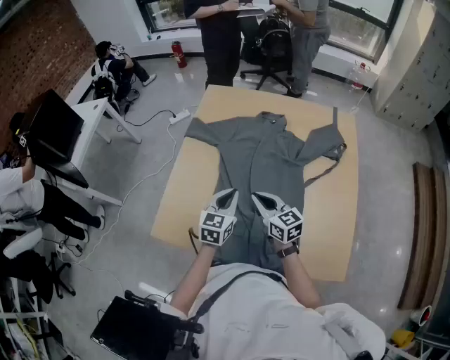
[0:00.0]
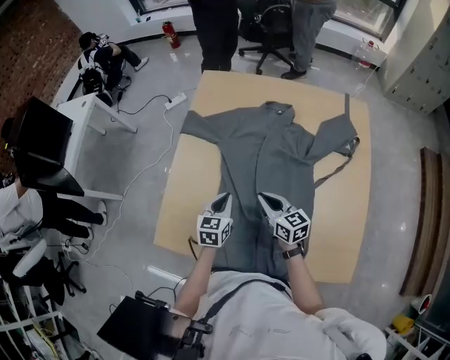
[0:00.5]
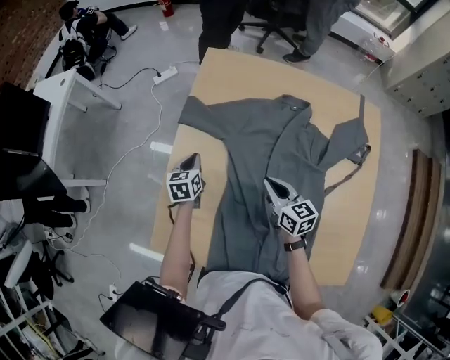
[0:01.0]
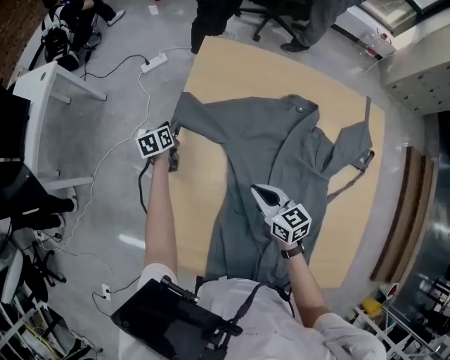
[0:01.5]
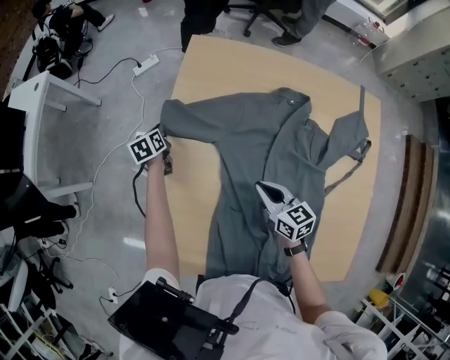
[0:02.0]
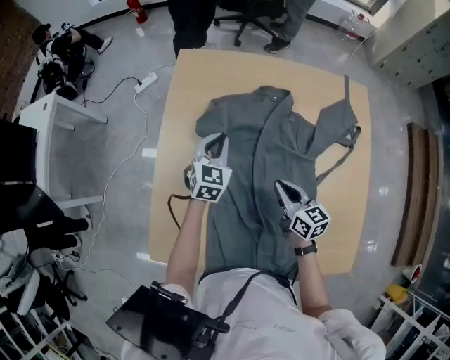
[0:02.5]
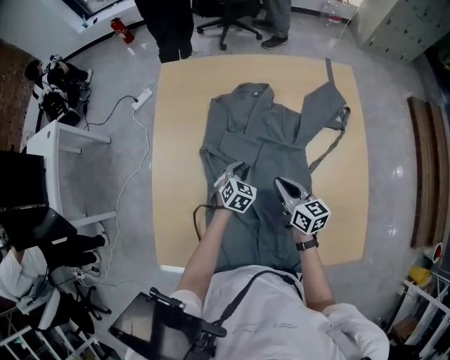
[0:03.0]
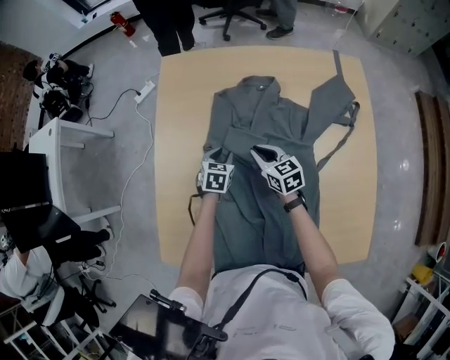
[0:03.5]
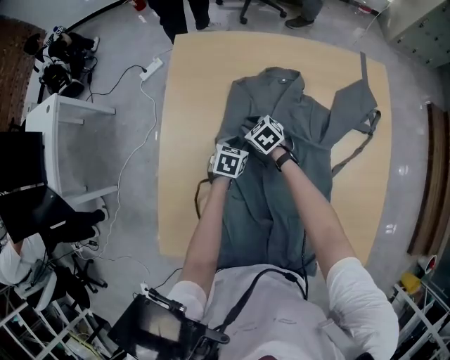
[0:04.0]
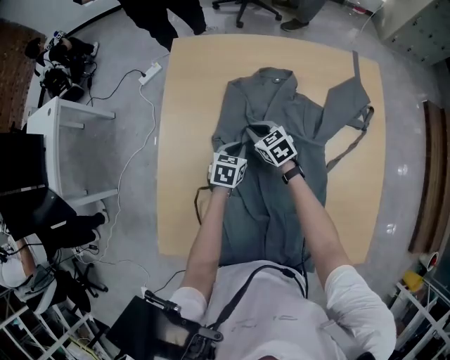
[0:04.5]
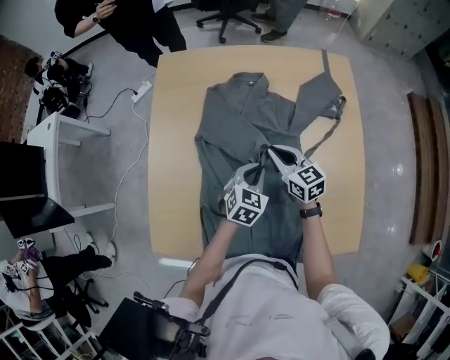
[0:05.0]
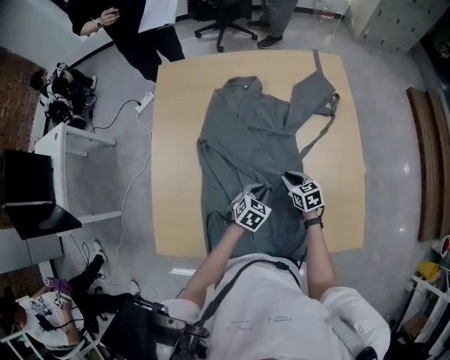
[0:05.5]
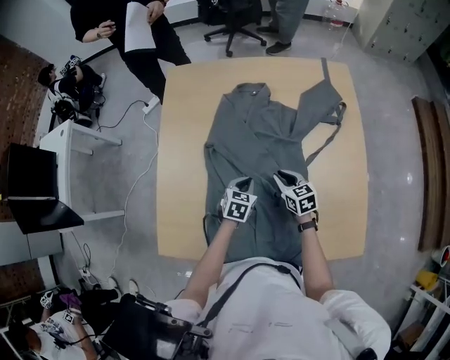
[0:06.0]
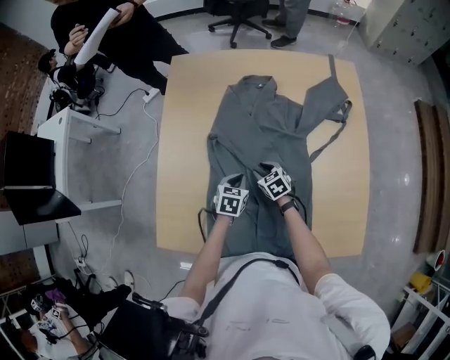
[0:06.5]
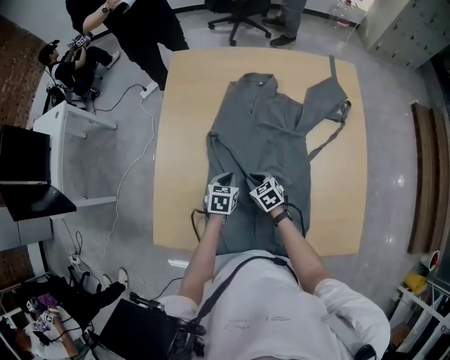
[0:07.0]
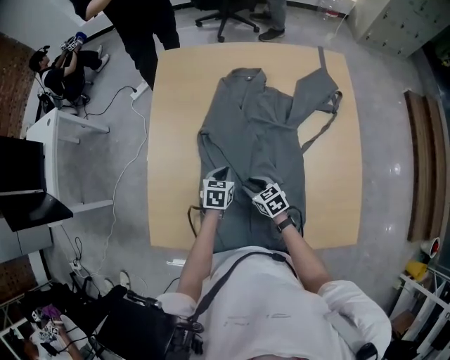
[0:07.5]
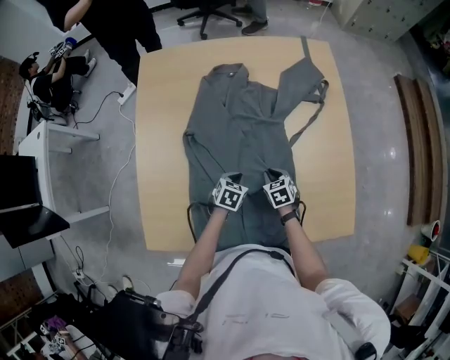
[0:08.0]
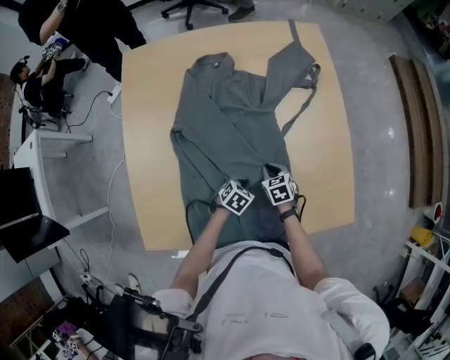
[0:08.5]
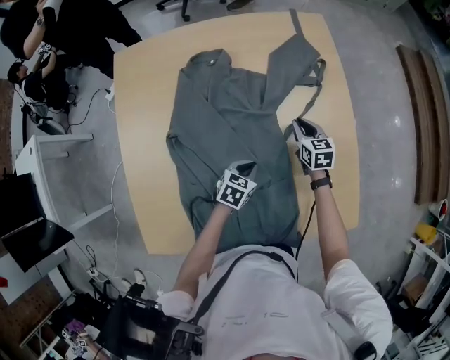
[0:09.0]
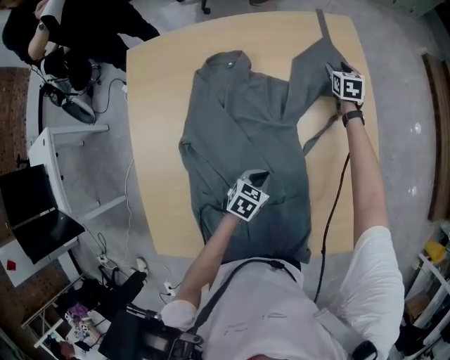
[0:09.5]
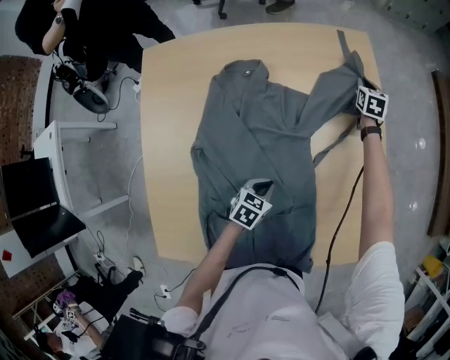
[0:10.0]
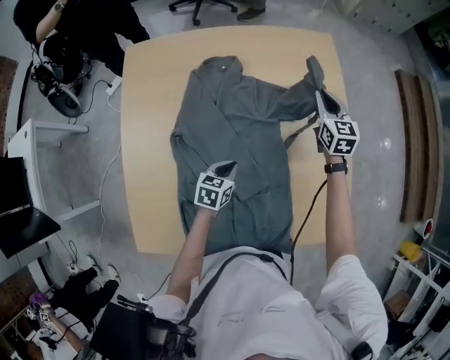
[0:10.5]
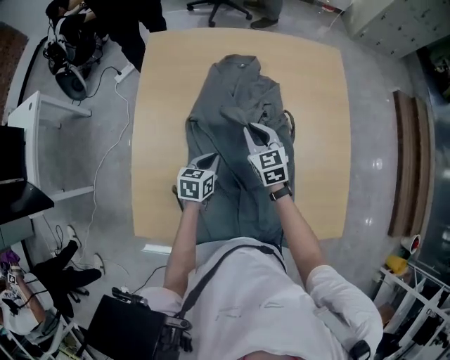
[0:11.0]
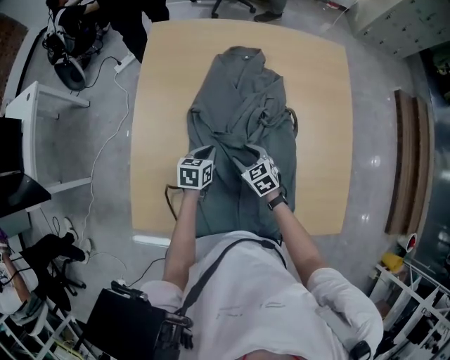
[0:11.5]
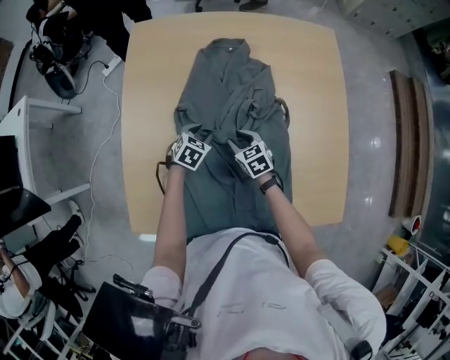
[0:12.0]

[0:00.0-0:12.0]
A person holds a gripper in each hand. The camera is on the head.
0:00.0 to 0:02.0: The right gripper is displaced forward and downward by approximately 20 cm. Meanwhile the left gripper is displaced forward, to the left and downward by about 50 cm, swivels approximately 40 degrees, and opens, then closes once more.
0:02.0 to 0:04.0: The left gripper goes approximately 35 cm to the right and backward, turns by approximately 40 degrees, and opens up. The right gripper moves forward and downward, approximately 20 cm, and swivels about 30 degrees.
0:04.0 to 0:06.0: The right gripper goes some 30 cm backward and to the right, and changes its angle by approximately 30 degrees; the left gripper moves backward, to the right and upward, approximately 20 cm, and closes its fingers.
0:06.0 to 0:08.0: The right gripper is displaced downward by roughly 10 cm, and turns by some 20 degrees. Meanwhile the left gripper changes place by about 10 cm.
0:08.0 to 0:10.0: The left gripper shifts by approximately 10 cm, while the right gripper shifts by approximately 50 cm, swivels roughly 40 degrees, and opens, then closes again.
0:10.0 to 0:12.0: The right gripper reaches approximately 15 cm upward, then returns, and turns by about 40 degrees. Meanwhile the left gripper ends up some 15 cm from where it was, and opens up.

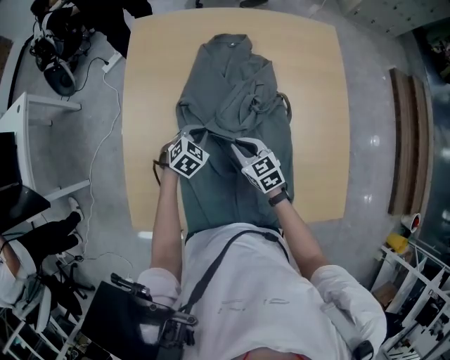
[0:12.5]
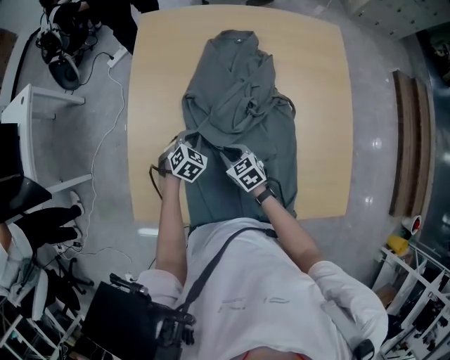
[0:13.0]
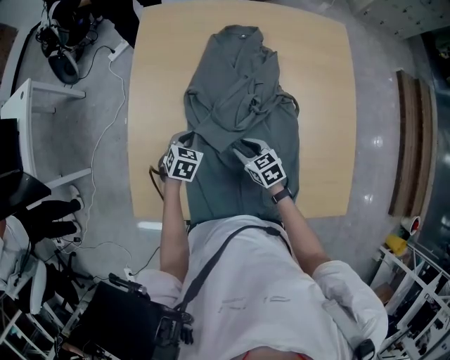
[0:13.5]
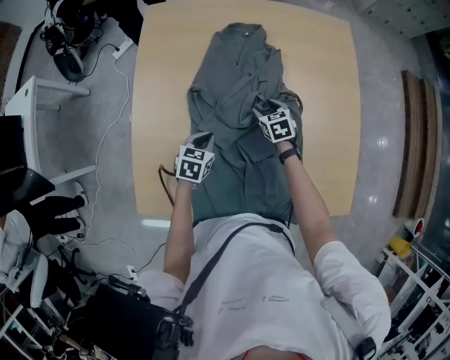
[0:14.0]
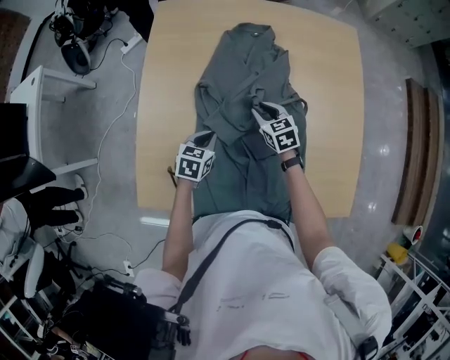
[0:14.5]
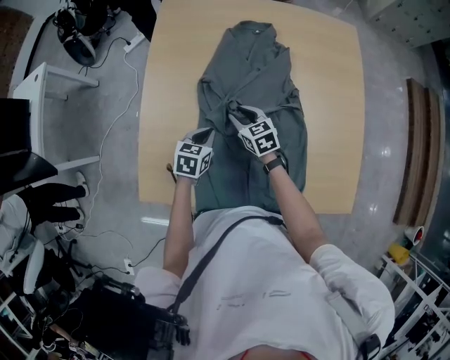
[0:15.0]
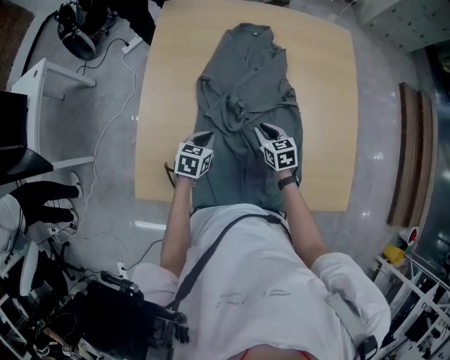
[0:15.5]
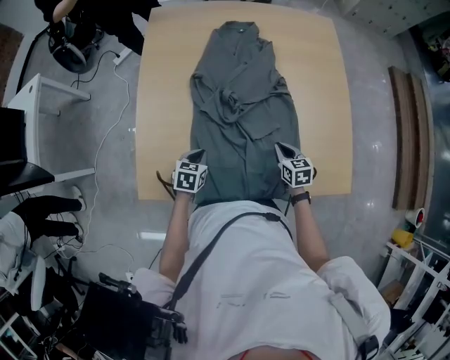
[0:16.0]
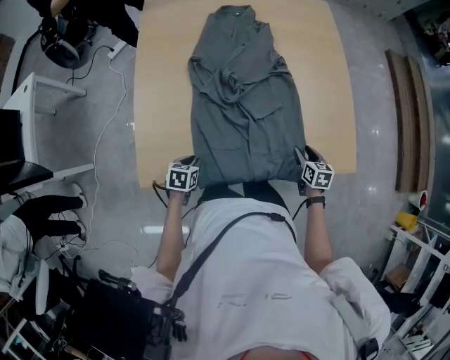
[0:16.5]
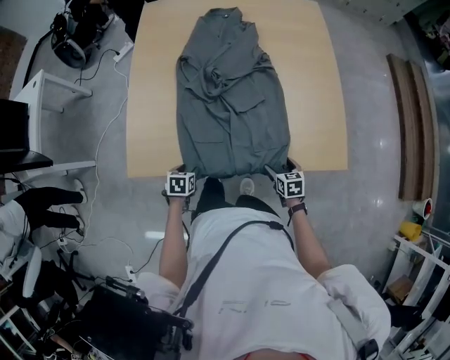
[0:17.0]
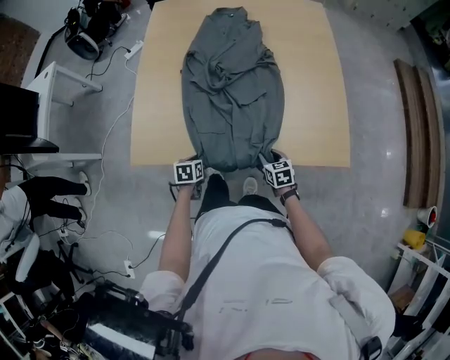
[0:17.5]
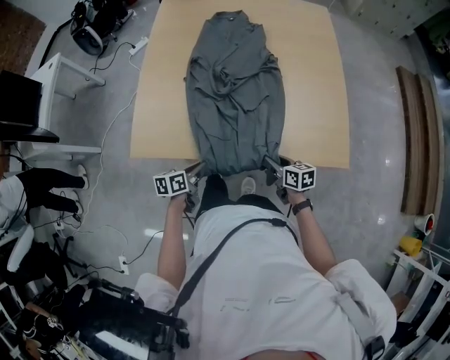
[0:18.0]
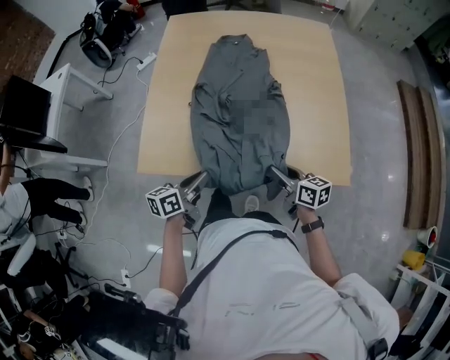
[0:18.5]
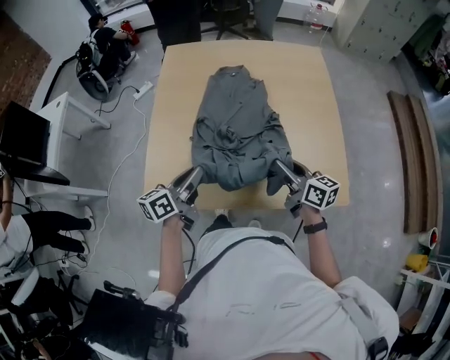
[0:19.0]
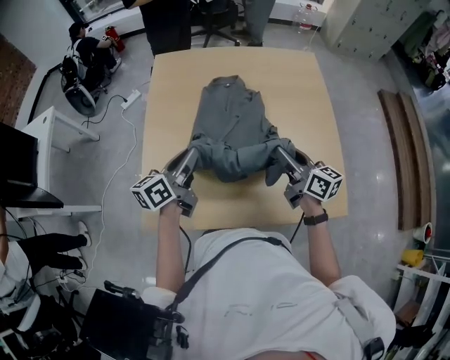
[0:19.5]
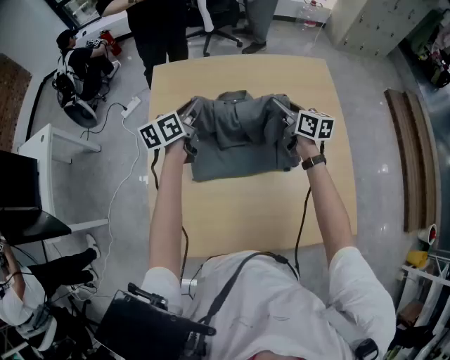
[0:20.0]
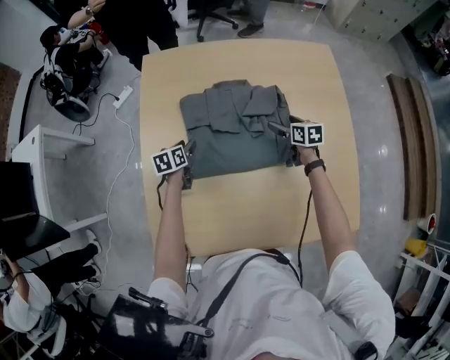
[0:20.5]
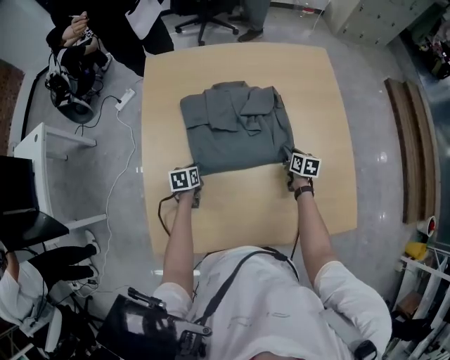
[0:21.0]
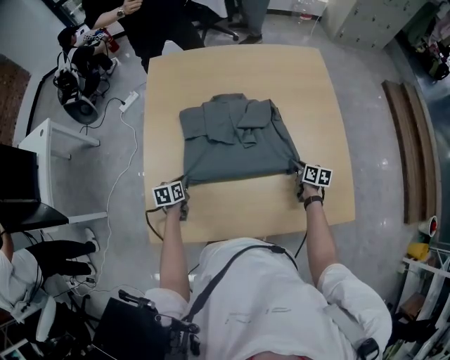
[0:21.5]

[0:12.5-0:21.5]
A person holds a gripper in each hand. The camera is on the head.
0:12.5 to 0:14.5: The right gripper goes some 5 cm forward. Meanwhile the left gripper is displaced backward by about 5 cm, and changes its angle by about 30 degrees.
0:14.5 to 0:17.0: The left gripper changes place by about 30 cm, and opens its fingers. Meanwhile the right gripper ends up about 40 cm from where it was, rotates roughly 30 degrees, and opens its fingers.
0:17.0 to 0:19.5: The two grippers go about 40 cm upward and forward. The right gripper tilts its fingers roughly 40 degrees upward, and closes up, while the left gripper angles its fingers upward, by roughly 60 degrees, and closes its fingers.
0:19.5 to 0:21.5: The grippers both shift downward by about 30 cm. The right gripper tips its fingers downward by some 30 degrees, and opens, then closes once more, while the left gripper angles its fingers downward, by about 40 degrees, and opens, then closes once more.

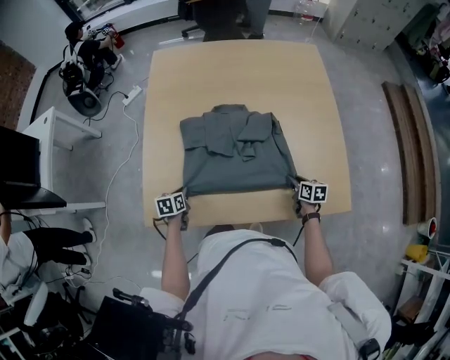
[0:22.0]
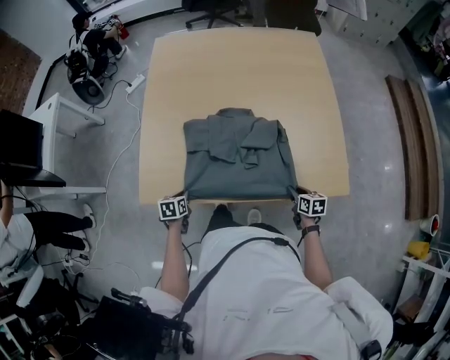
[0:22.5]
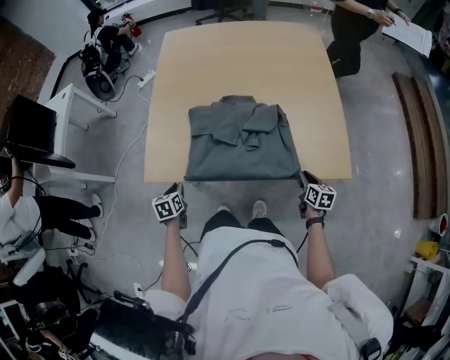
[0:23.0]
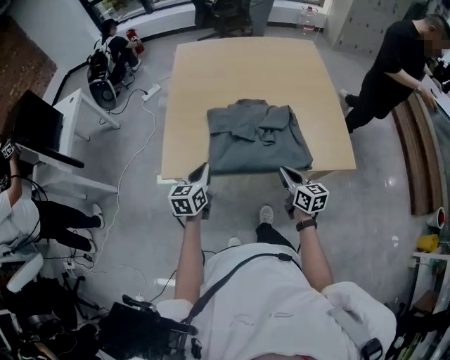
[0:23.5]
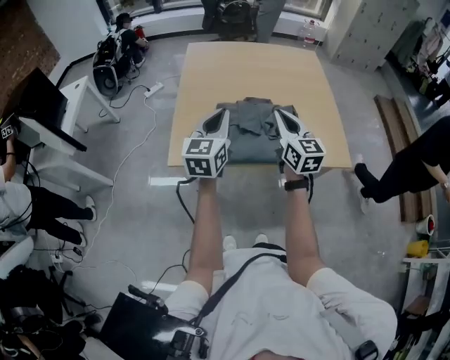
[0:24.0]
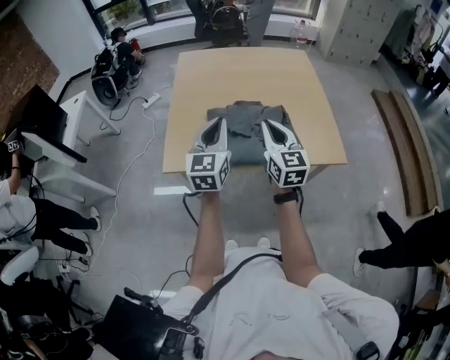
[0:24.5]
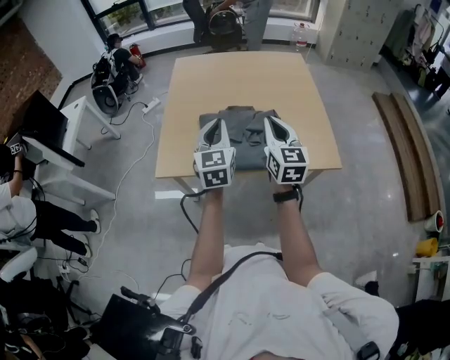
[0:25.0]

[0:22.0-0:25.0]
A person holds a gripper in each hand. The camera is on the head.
0:22.0 to 0:23.5: The left gripper moves upward and backward, about 25 cm, and rotates some 30 degrees, while the right gripper moves backward, upward and to the left, some 30 cm, and turns by some 30 degrees.
0:23.5 to 0:25.0: The right gripper heads upward, covering approximately 20 cm, and swivels roughly 30 degrees. Meanwhile the left gripper goes approximately 20 cm upward and to the right, and changes its angle by some 30 degrees.

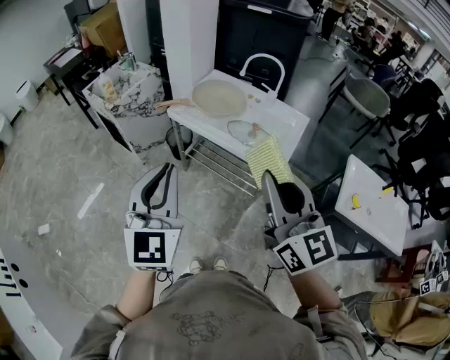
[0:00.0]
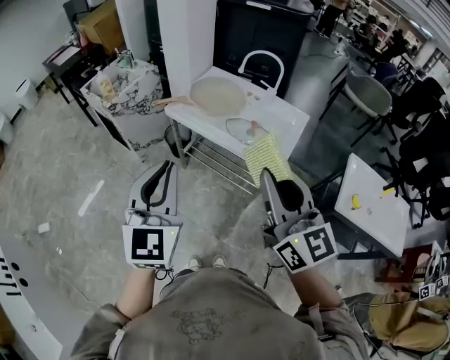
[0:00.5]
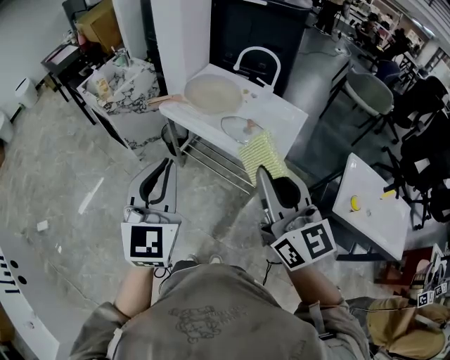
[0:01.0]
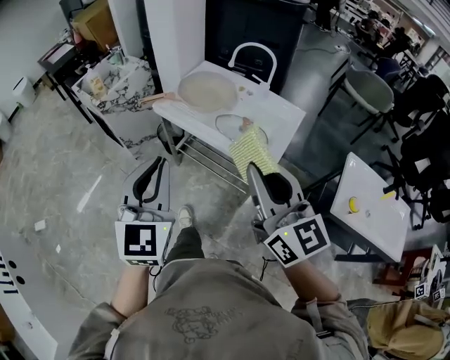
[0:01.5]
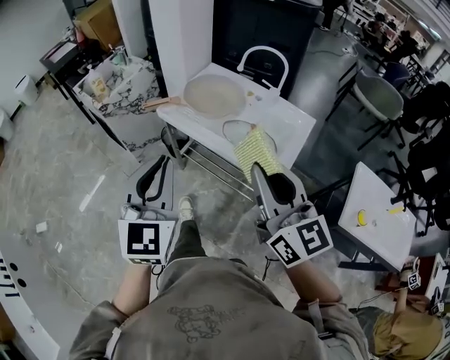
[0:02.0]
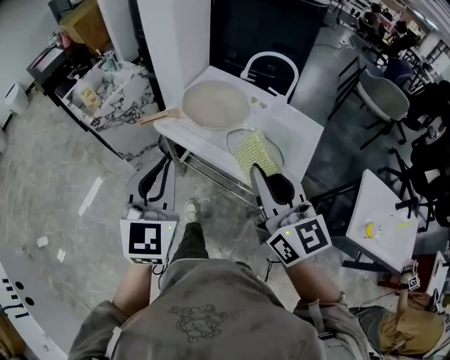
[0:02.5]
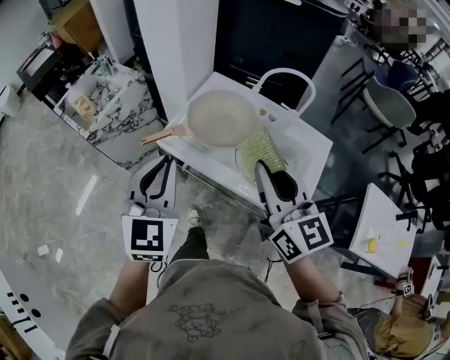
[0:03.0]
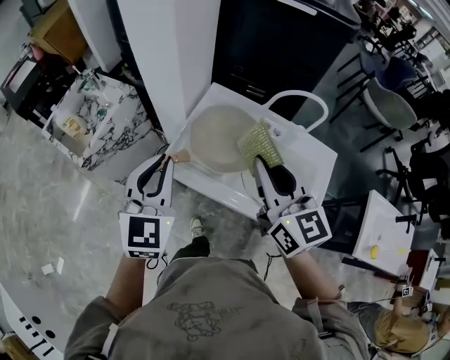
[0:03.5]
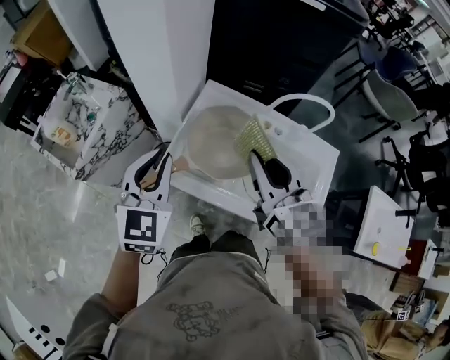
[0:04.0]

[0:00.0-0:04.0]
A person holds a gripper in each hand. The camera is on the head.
0:00.0 to 0:02.0: The right gripper travels forward and downward by approximately 10 cm. Meanwhile the left gripper goes some 10 cm forward and to the right.
0:02.0 to 0:04.0: The two grippers travel together, forward, about 40 cm. The left gripper rotates some 20 degrees.
